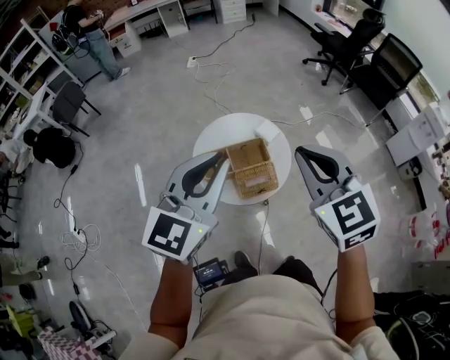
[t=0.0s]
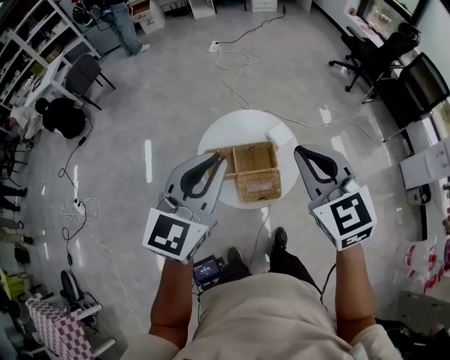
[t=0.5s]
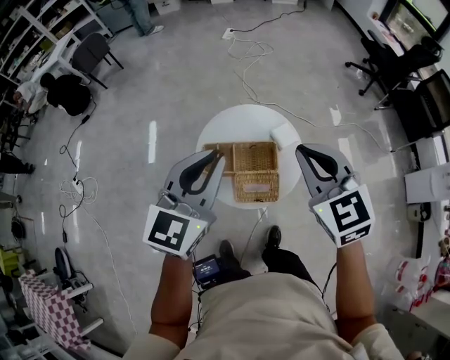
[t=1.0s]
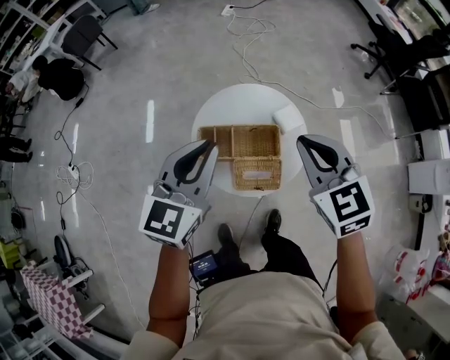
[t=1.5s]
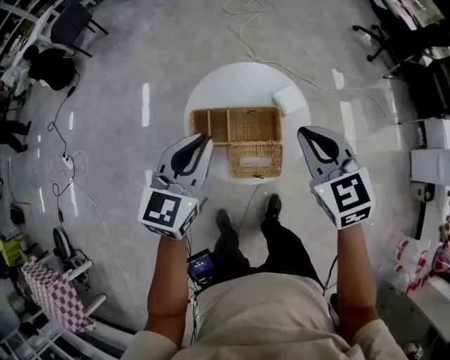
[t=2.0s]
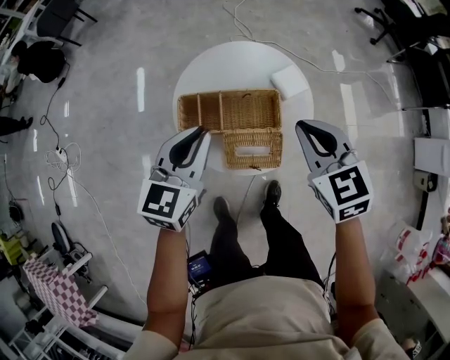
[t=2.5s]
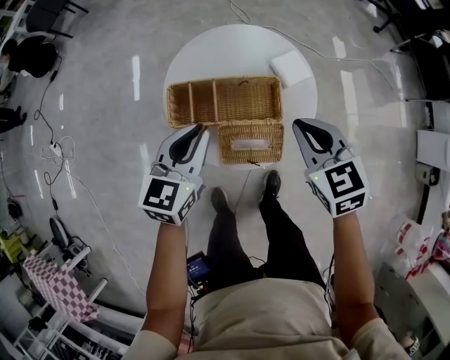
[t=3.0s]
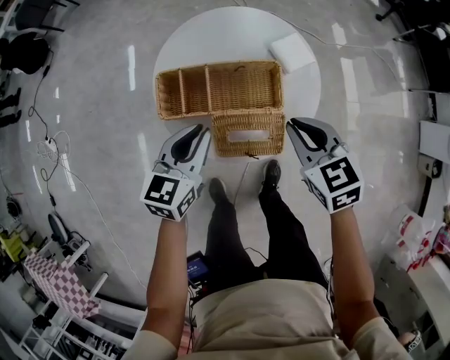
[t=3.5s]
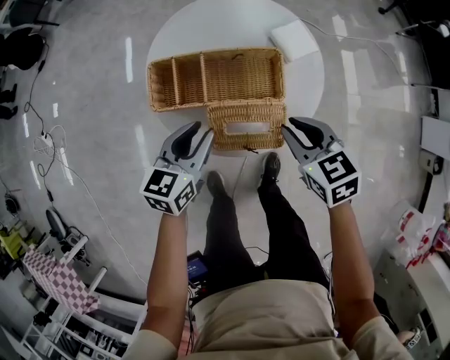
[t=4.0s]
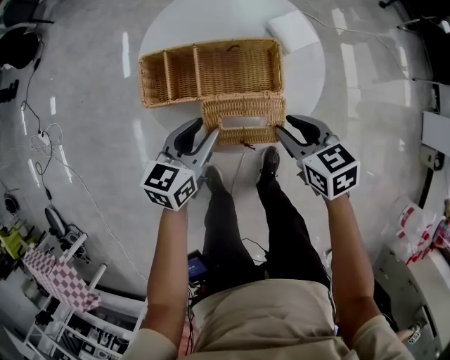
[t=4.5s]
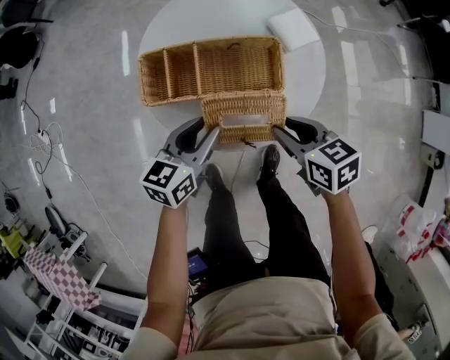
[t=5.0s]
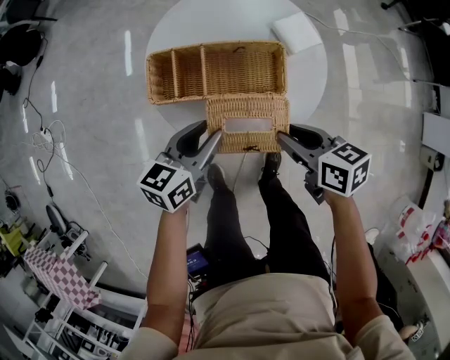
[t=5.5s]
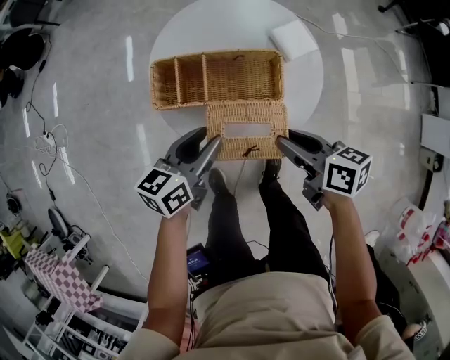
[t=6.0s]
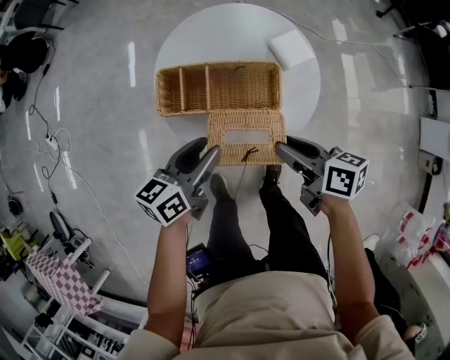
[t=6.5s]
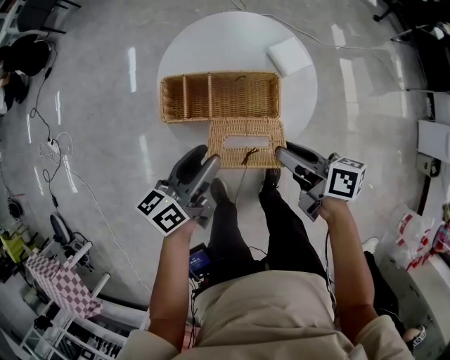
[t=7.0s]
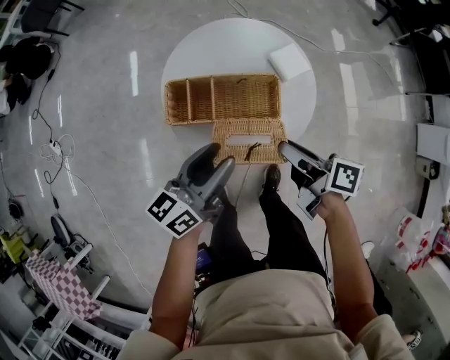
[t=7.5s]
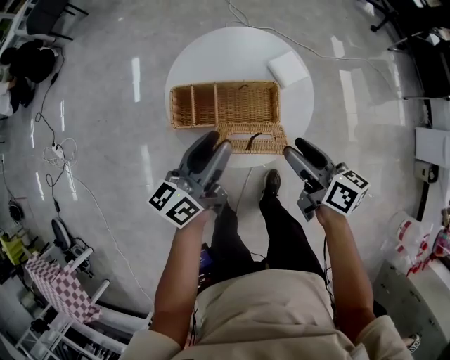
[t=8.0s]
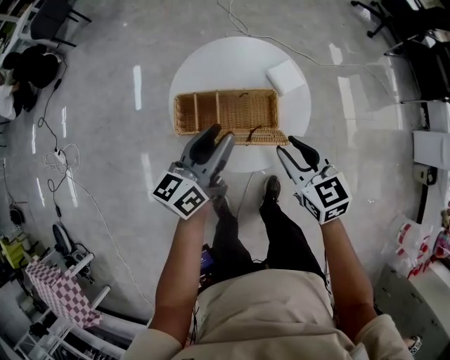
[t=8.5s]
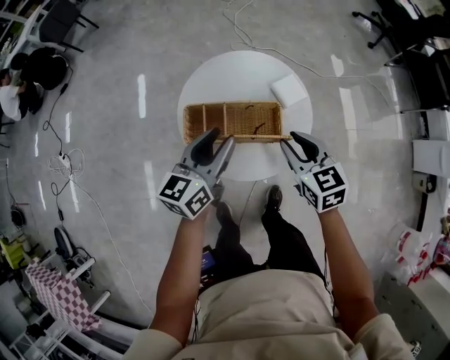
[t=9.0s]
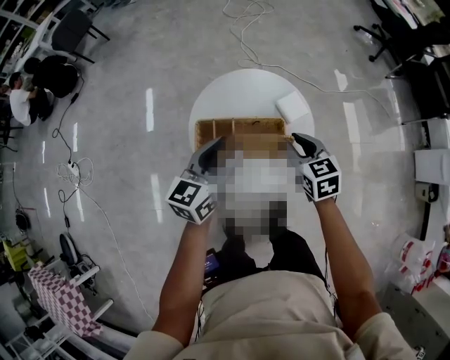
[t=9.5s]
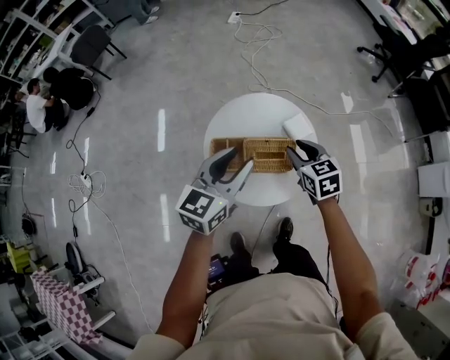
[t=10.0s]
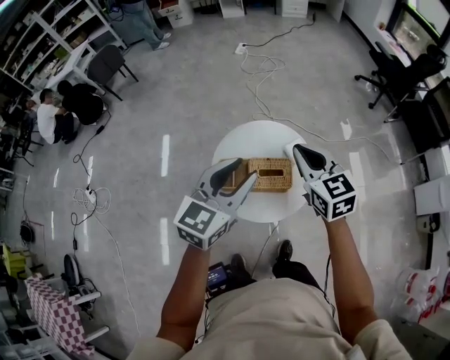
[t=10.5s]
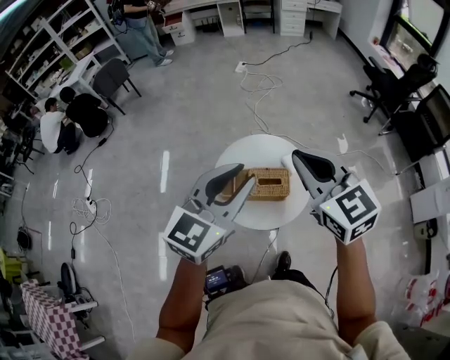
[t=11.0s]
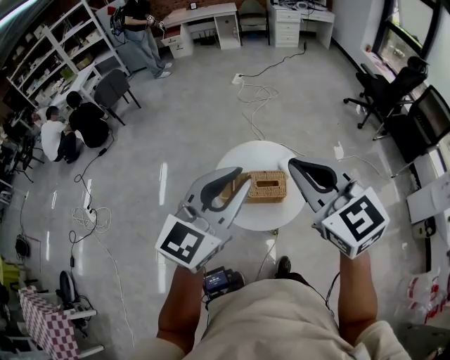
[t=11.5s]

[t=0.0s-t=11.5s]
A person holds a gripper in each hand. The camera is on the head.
t=0.0s to t=2.0s: Both grippers move downward and forward, roughly 25 cm. The left gripper rotates some 30 degrees.
t=2.0s to t=4.0s: The two grippers go some 30 cm downward. The right gripper rotates approximately 20 degrees. The left gripper turns by approximately 20 degrees.
t=4.0s to t=6.0s: The right gripper rotates approximately 40 degrees.
t=6.0s to t=7.5s: The right gripper swivels approximately 20 degrees, while the left gripper is displaced upward by about 10 cm.
t=7.5s to t=9.5s: Both grippers travel together forward and upward, roughly 10 cm. The right gripper rotates around the line of its fingers by approximately 50 degrees, counterclockwise from behind. Meanwhile the left gripper changes its angle by some 20 degrees.
t=9.5s to t=11.5s: The left gripper shifts approximately 35 cm upward and backward, rotates approximately 30 degrees, and closes up; the right gripper goes approximately 40 cm upward, swivels roughly 40 degrees, and closes.

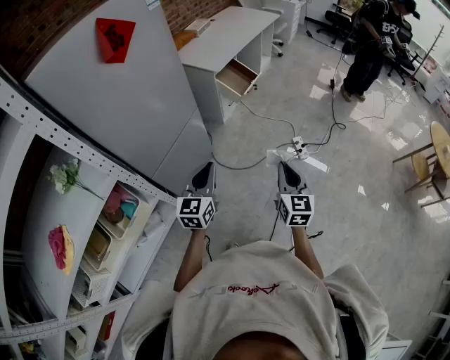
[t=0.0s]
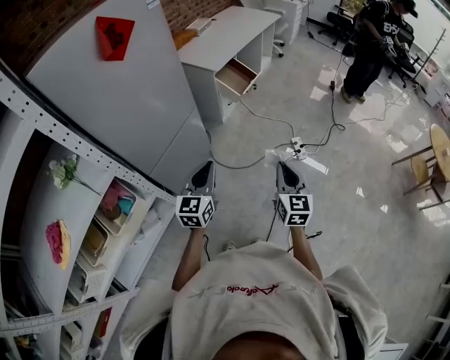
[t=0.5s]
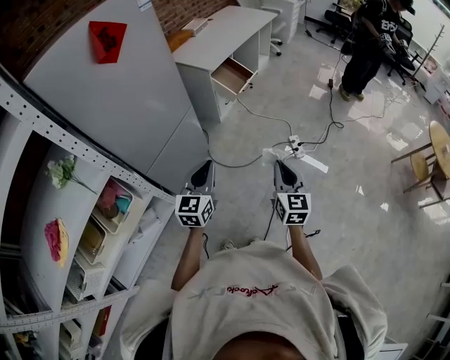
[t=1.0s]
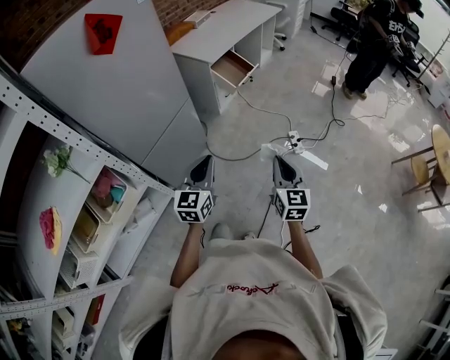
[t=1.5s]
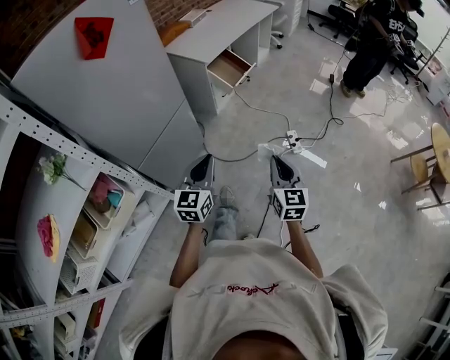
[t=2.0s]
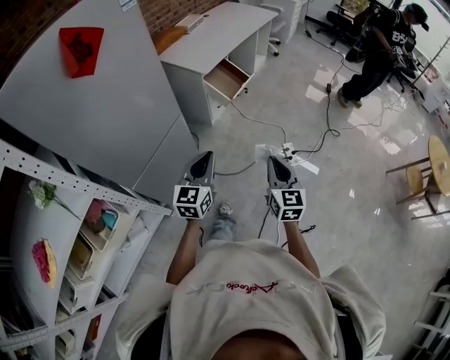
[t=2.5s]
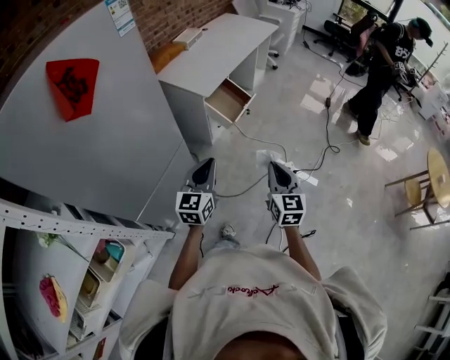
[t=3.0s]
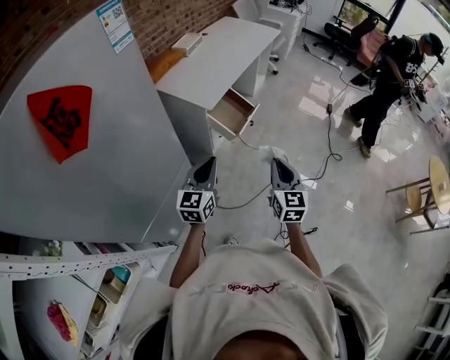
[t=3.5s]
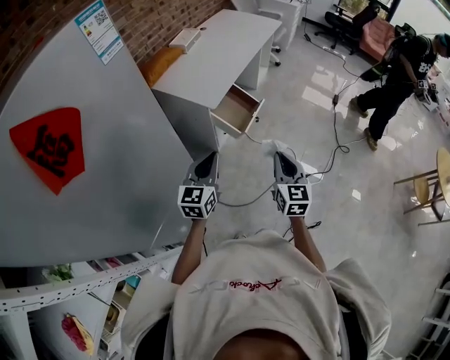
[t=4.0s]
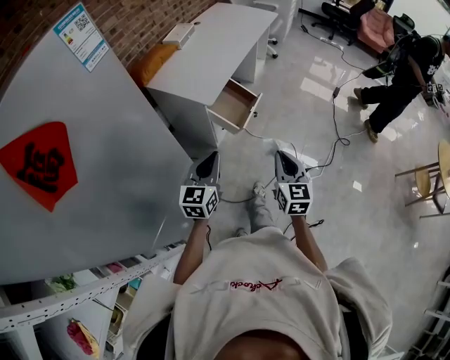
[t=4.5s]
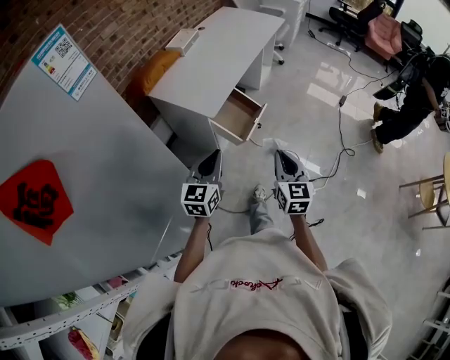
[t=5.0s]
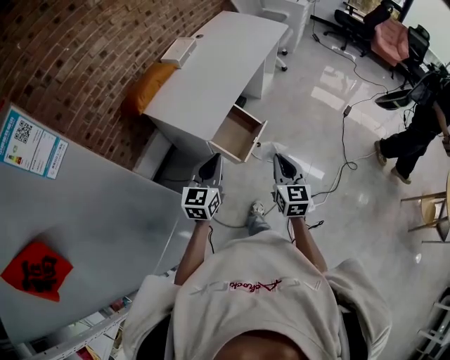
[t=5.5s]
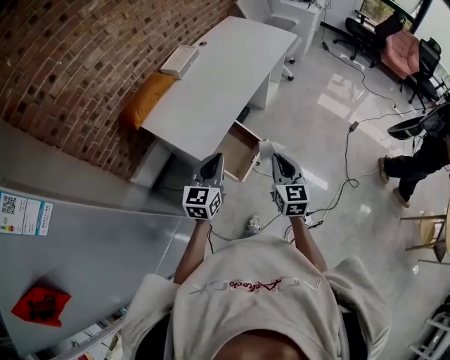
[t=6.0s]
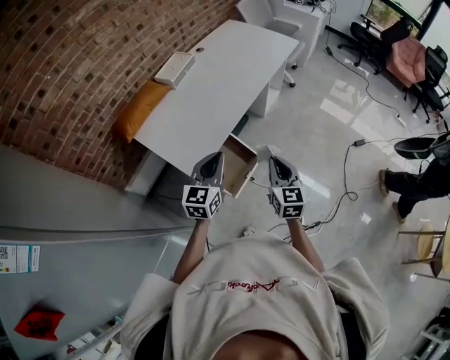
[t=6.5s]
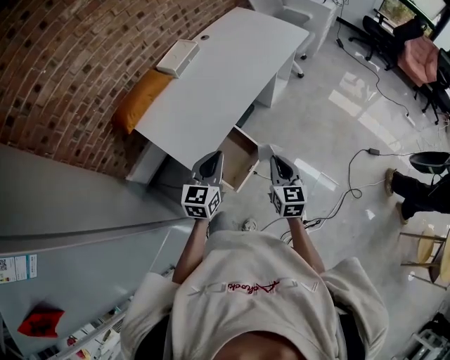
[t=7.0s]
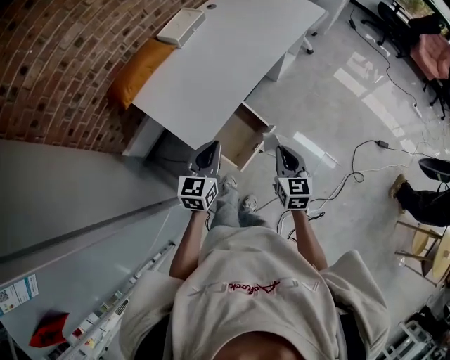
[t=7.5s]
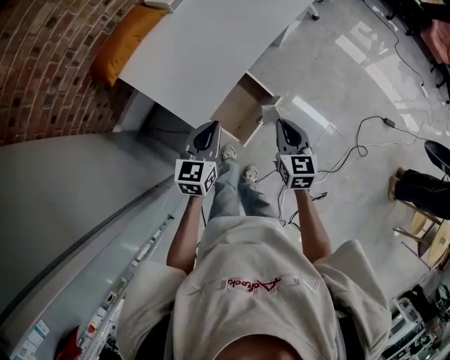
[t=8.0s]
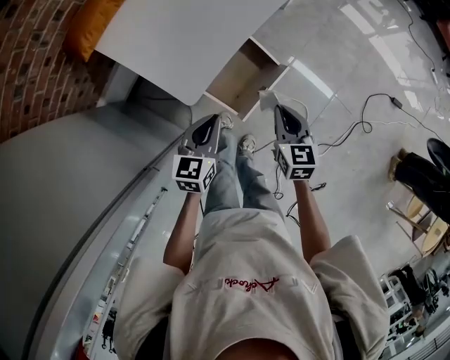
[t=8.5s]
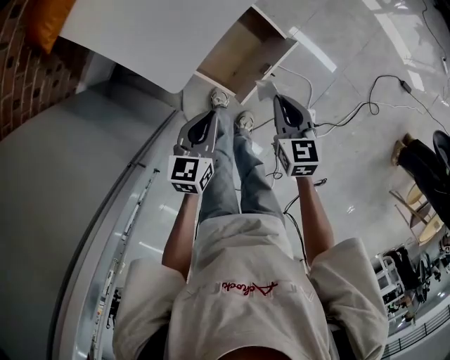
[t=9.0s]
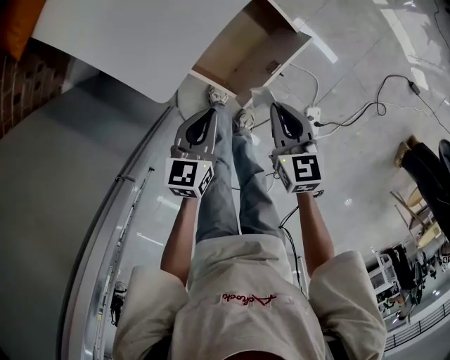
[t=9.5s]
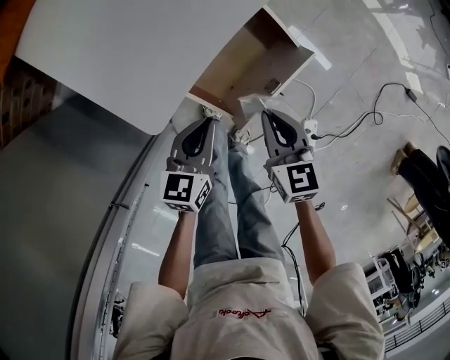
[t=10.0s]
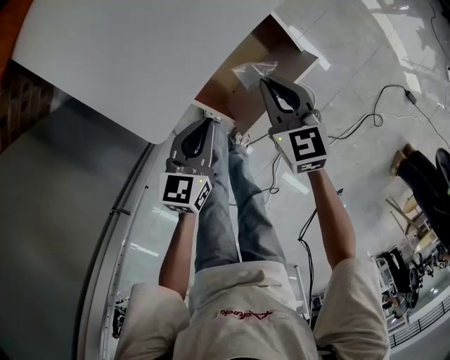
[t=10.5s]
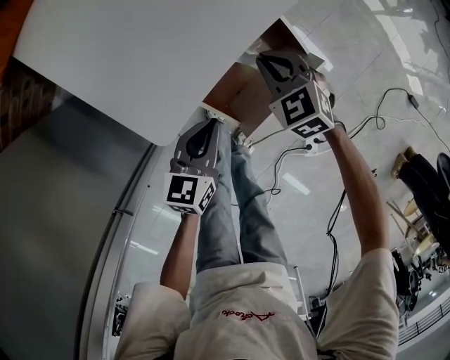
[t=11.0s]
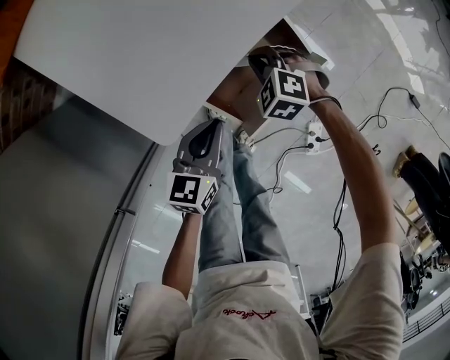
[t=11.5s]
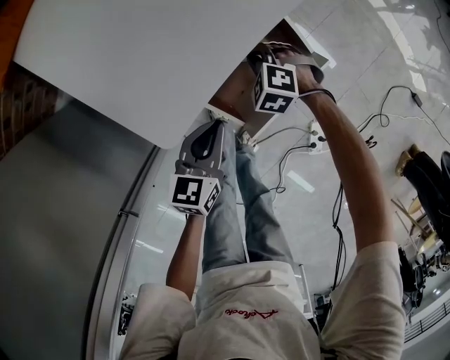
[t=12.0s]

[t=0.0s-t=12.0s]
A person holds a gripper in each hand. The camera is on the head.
t=0.0s to t=2.0s: The right gripper travels to the right by approximately 5 cm, while the left gripper travels to the right by roughly 10 cm.
t=2.0s to t=4.0s: Both grippers move forward, some 35 cm.
t=4.0s to t=6.0s: Both grippers move forward, some 30 cm.
t=6.0s to t=8.0s: The two grippers go roughly 15 cm downward and forward.
t=8.0s to t=10.0s: Both grippers move downward, about 25 cm.
t=10.0s to t=12.0s: The right gripper heads downward and forward, covering roughly 20 cm, and rolls counterclockwise, seen from behind, by roughly 60 degrees.

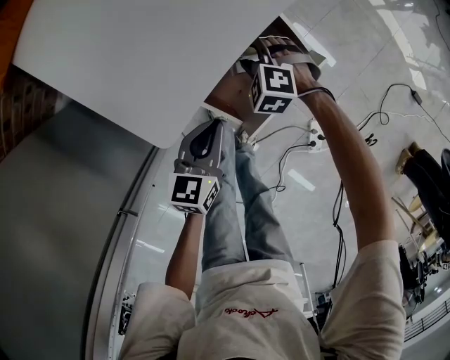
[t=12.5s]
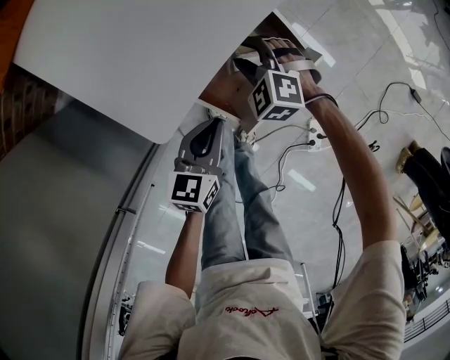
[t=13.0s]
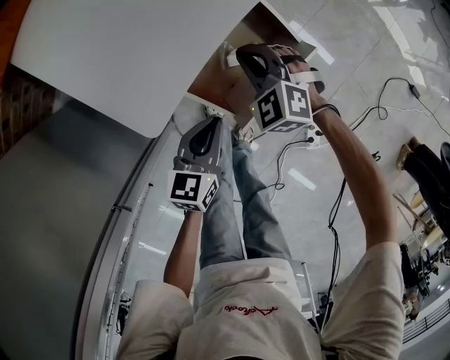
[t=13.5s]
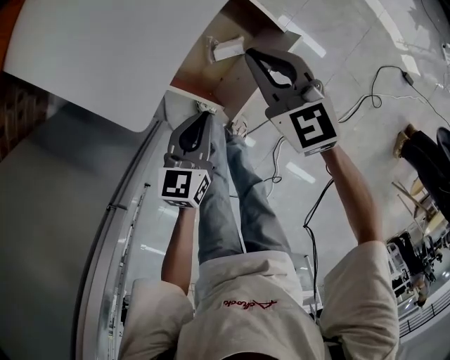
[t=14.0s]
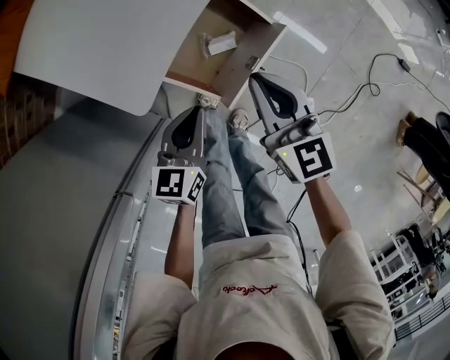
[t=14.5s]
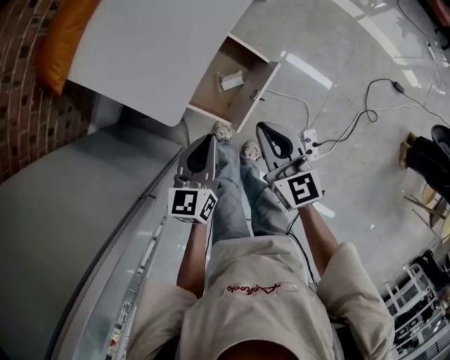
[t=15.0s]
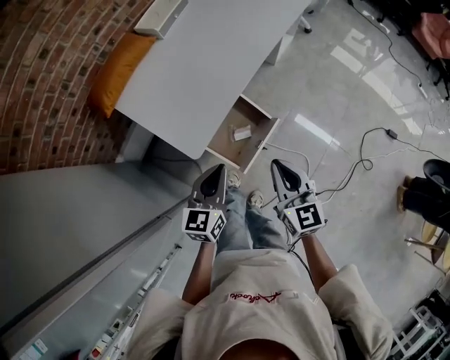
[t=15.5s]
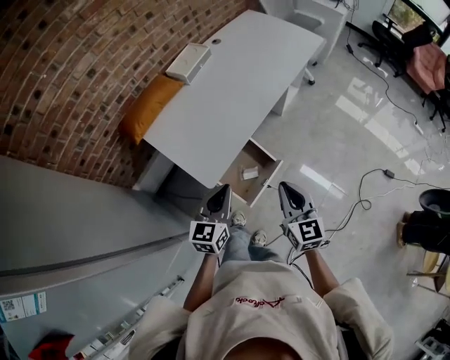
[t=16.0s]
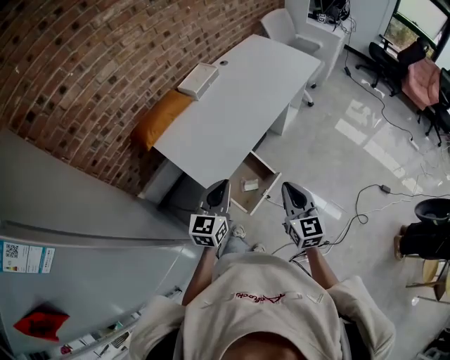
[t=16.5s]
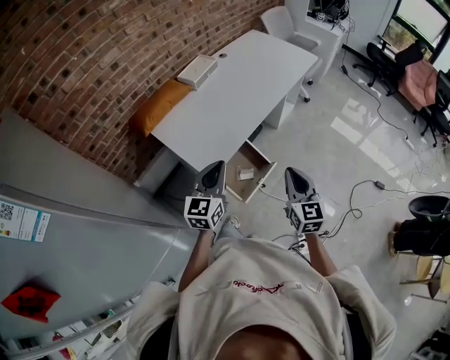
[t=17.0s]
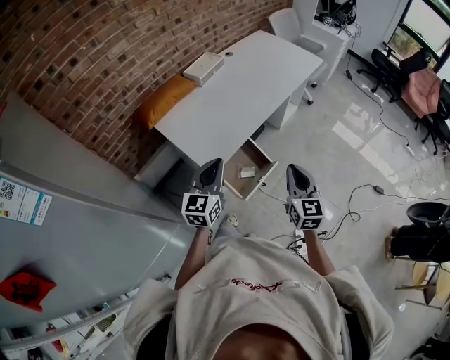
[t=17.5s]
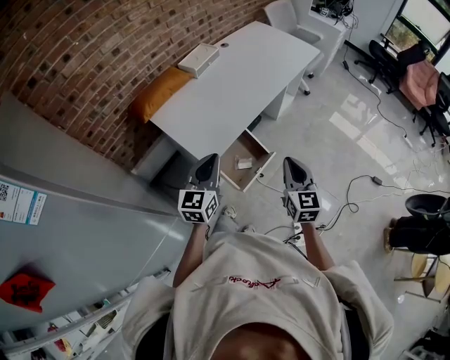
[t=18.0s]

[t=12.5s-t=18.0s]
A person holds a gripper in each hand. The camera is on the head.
t=12.5s to t=14.5s: The right gripper is displaced upward by about 25 cm, points its fingers some 50 degrees further upward, and closes its fingers. Meanwhile the left gripper shifts approximately 10 cm upward.
t=14.5s to t=16.0s: Both grippers travel together upward, roughly 25 cm.
t=16.0s to t=18.0s: The left gripper shifts about 10 cm upward; the right gripper ends up about 5 cm from where it was.
